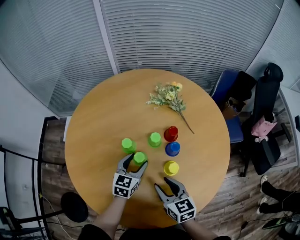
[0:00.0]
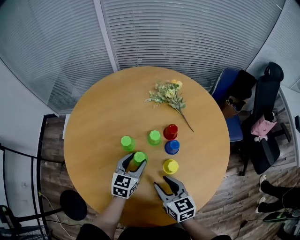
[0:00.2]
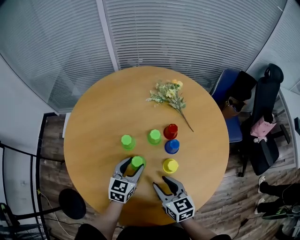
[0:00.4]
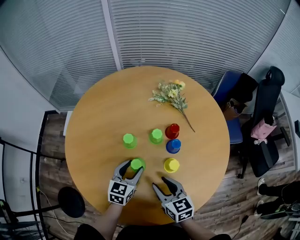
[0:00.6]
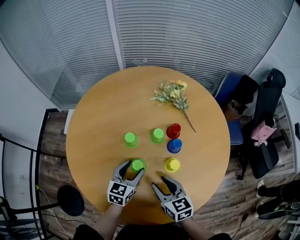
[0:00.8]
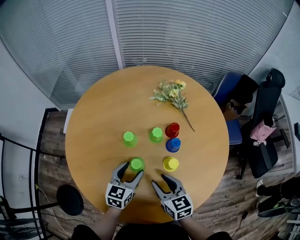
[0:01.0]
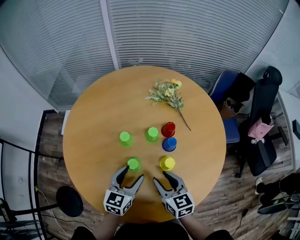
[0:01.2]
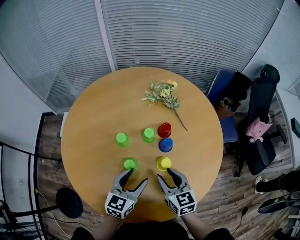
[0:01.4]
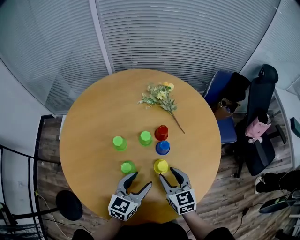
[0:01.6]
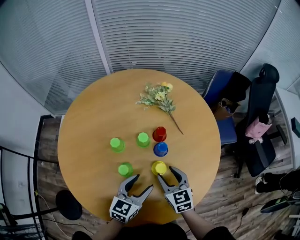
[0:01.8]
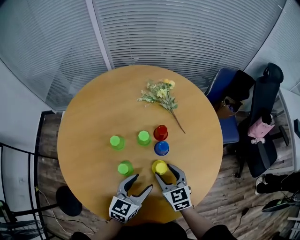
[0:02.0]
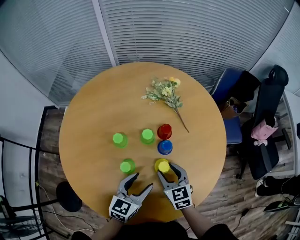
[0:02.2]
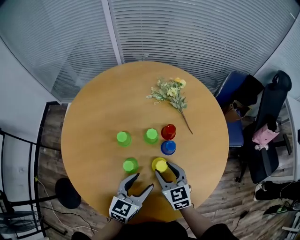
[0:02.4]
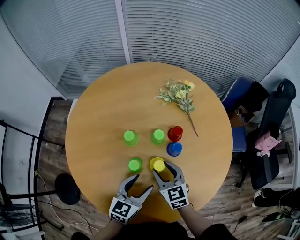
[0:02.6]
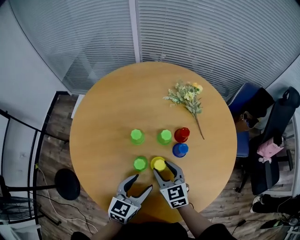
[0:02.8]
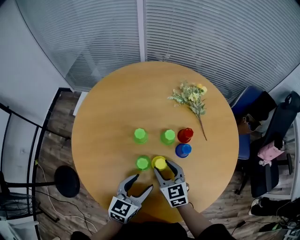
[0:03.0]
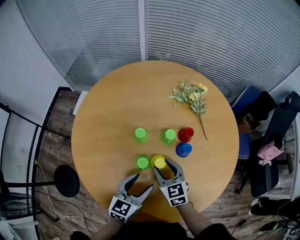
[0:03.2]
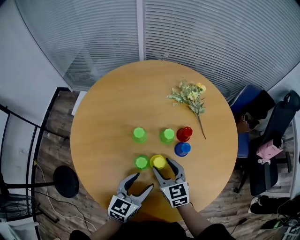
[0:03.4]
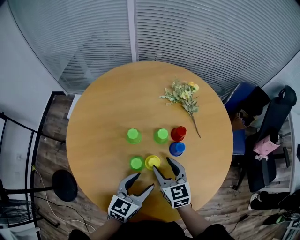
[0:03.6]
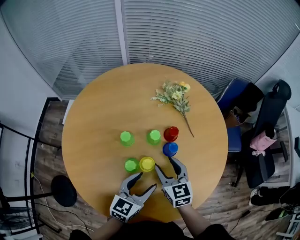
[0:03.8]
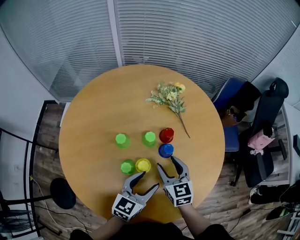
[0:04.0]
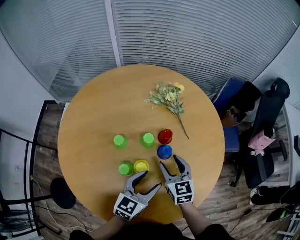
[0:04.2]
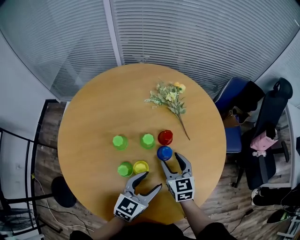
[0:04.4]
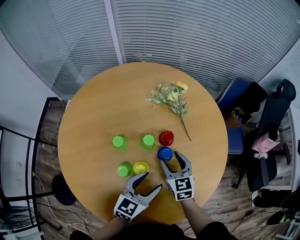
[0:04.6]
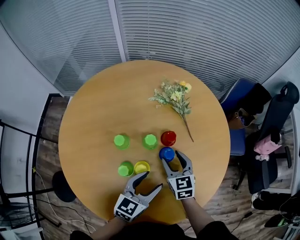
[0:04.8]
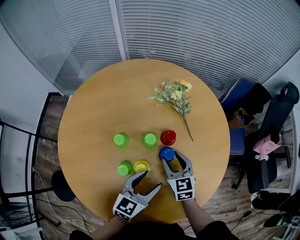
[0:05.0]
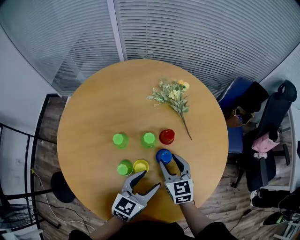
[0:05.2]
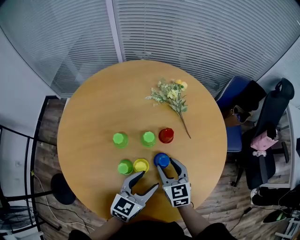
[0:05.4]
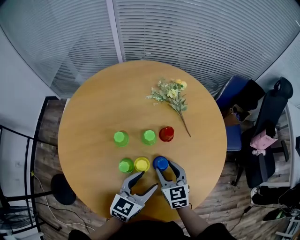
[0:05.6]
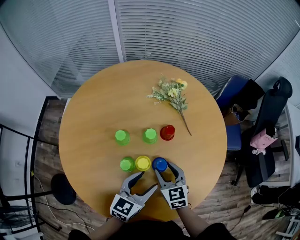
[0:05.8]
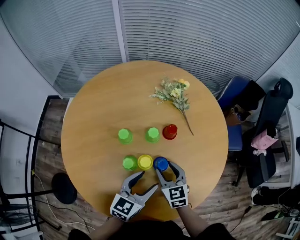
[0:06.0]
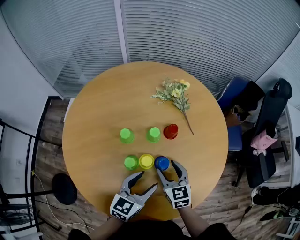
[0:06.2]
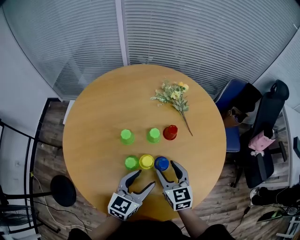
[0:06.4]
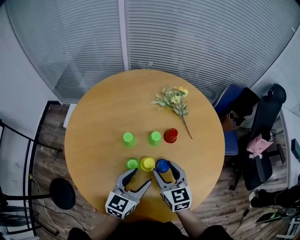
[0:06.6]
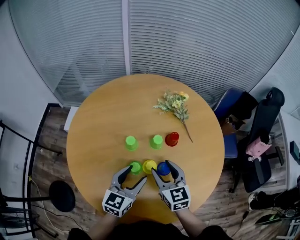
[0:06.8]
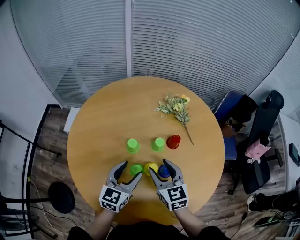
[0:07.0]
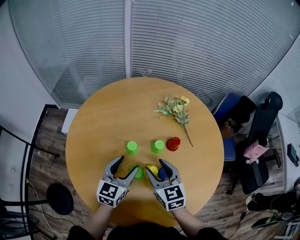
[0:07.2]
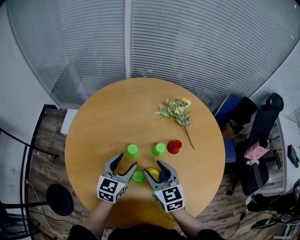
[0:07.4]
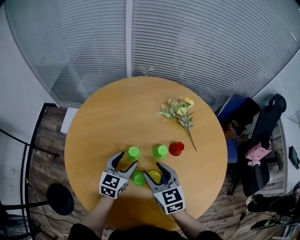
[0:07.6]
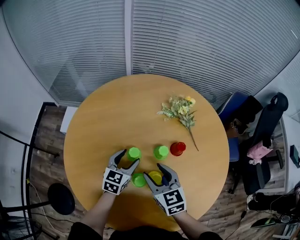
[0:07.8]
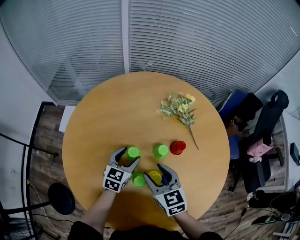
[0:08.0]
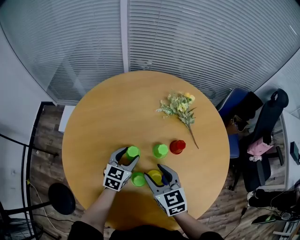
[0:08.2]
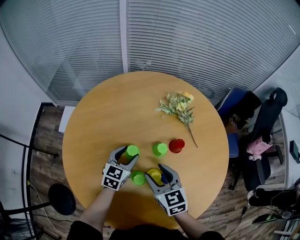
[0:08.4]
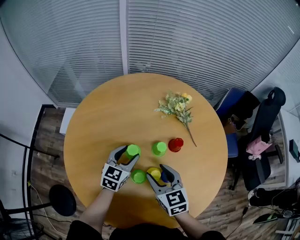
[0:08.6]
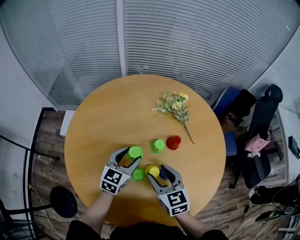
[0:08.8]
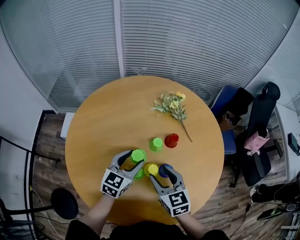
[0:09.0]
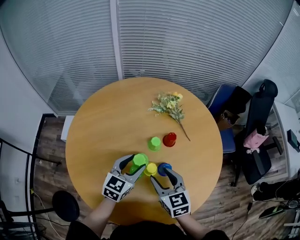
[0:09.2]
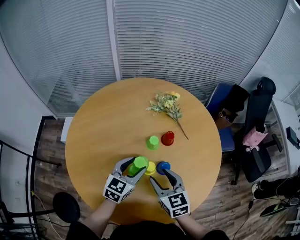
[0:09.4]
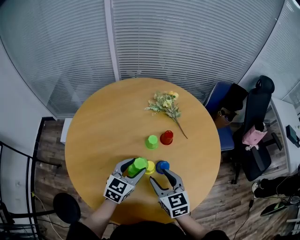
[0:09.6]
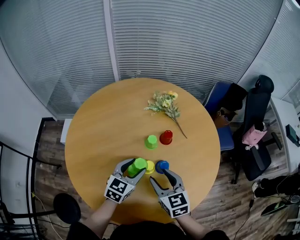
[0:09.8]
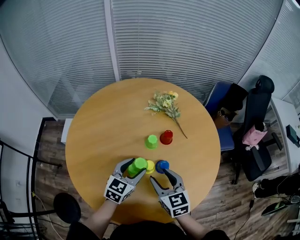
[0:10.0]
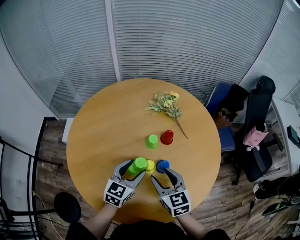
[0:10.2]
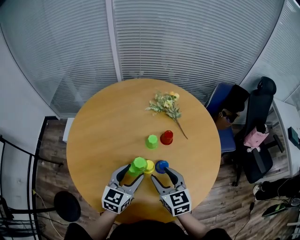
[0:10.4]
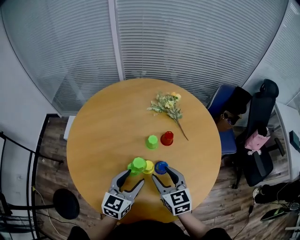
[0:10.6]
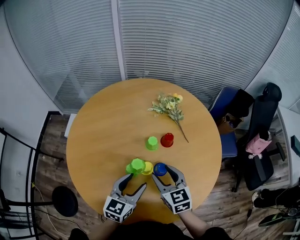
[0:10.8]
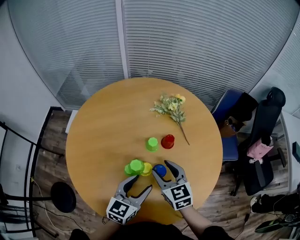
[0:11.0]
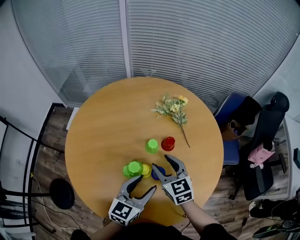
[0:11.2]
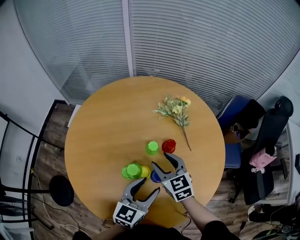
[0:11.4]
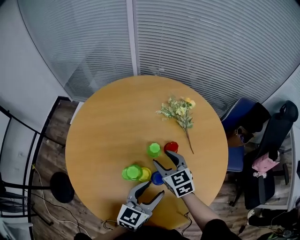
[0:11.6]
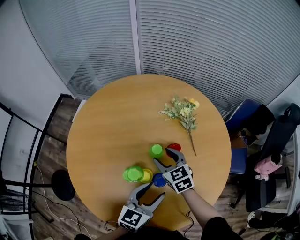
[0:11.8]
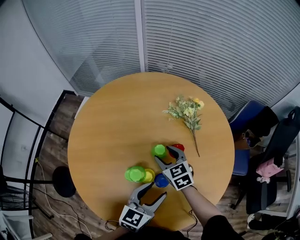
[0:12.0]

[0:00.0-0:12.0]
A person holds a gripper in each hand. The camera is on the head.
0:00.0 to 0:01.6: The left gripper heads backward, upward and to the right, covering approximately 15 cm; the right gripper heads to the right, covering approximately 5 cm.
0:01.6 to 0:03.0: The right gripper travels to the left by roughly 10 cm. The left gripper is displaced to the left by some 5 cm.
0:03.0 to 0:04.4: The left gripper moves to the right, about 10 cm; the right gripper goes roughly 15 cm to the right and forward.
0:04.4 to 0:06.0: The right gripper heads backward, covering about 5 cm.
0:06.0 to 0:07.6: The right gripper is displaced to the left, upward and forward by about 15 cm, while the left gripper goes some 20 cm to the left and forward.
0:07.6 to 0:09.0: The left gripper shifts about 5 cm upward and to the right, while the right gripper travels backward by approximately 5 cm.
0:09.0 to 0:10.4: The left gripper heads backward, covering about 10 cm.
0:10.4 to 0:12.0: The left gripper is displaced to the right by roughly 10 cm. Meanwhile the right gripper heads forward and downward, covering approximately 20 cm, and turns by roughly 30 degrees.

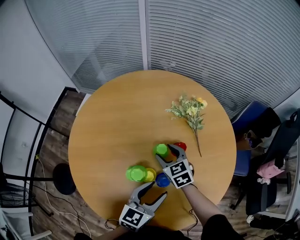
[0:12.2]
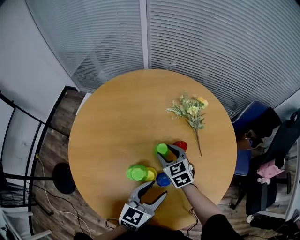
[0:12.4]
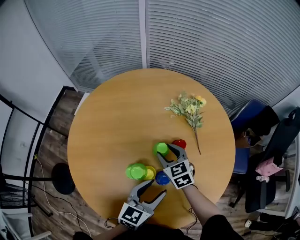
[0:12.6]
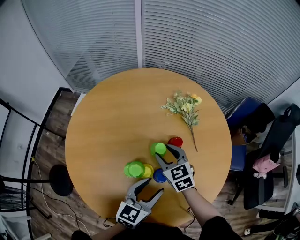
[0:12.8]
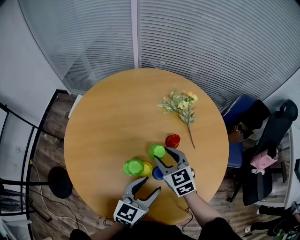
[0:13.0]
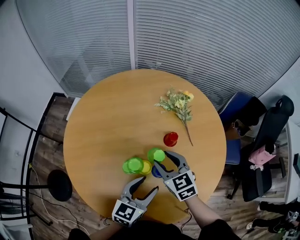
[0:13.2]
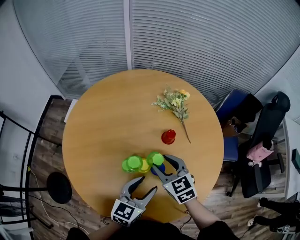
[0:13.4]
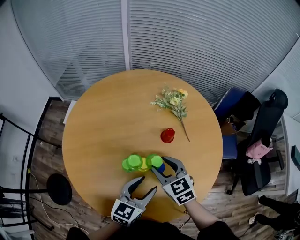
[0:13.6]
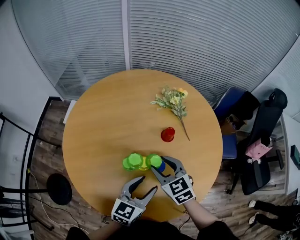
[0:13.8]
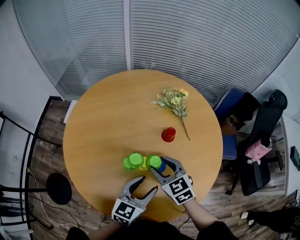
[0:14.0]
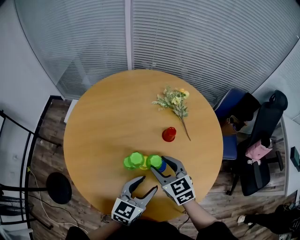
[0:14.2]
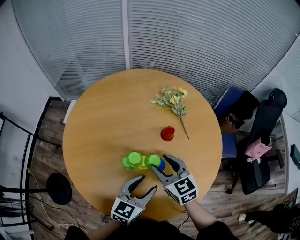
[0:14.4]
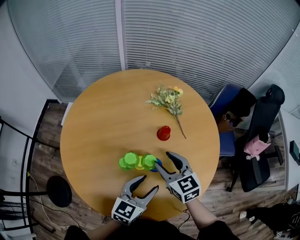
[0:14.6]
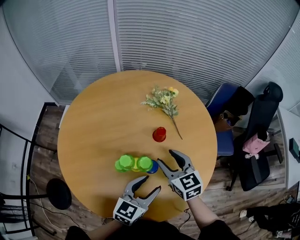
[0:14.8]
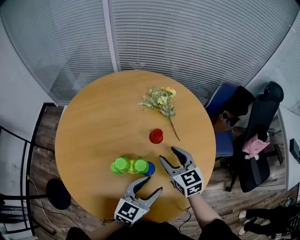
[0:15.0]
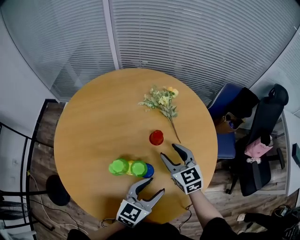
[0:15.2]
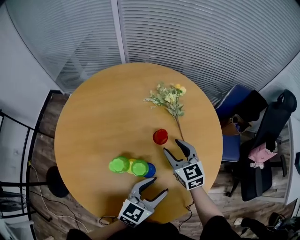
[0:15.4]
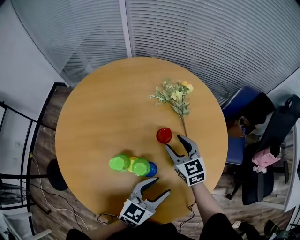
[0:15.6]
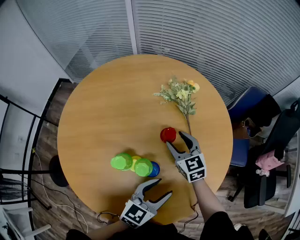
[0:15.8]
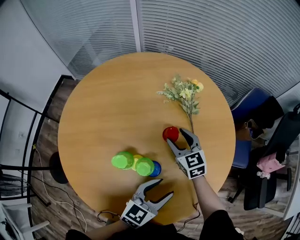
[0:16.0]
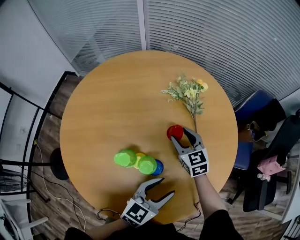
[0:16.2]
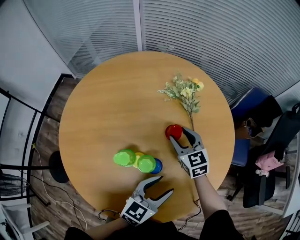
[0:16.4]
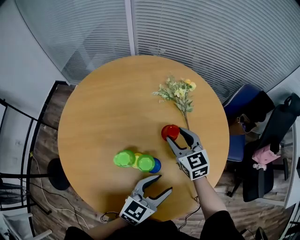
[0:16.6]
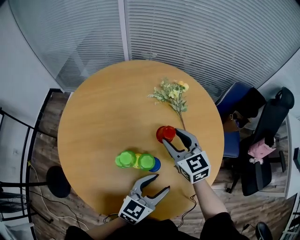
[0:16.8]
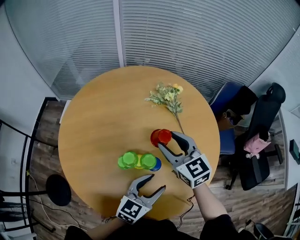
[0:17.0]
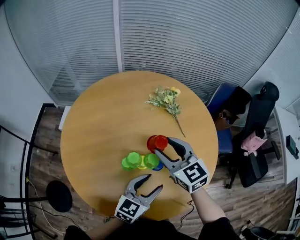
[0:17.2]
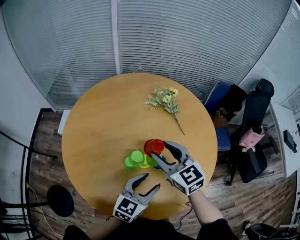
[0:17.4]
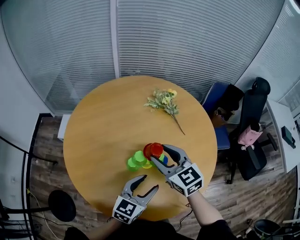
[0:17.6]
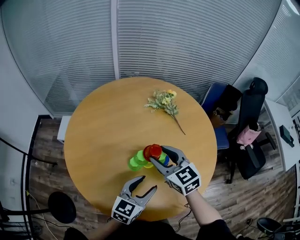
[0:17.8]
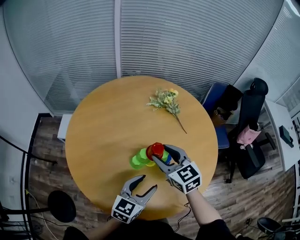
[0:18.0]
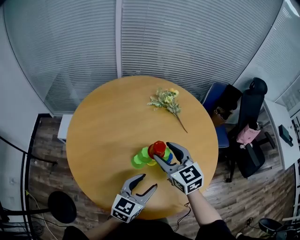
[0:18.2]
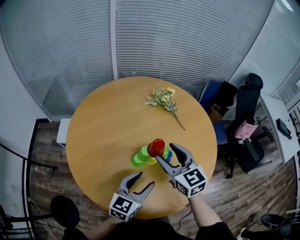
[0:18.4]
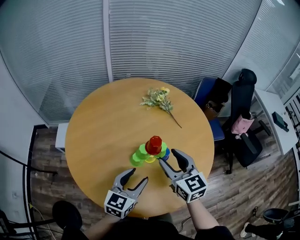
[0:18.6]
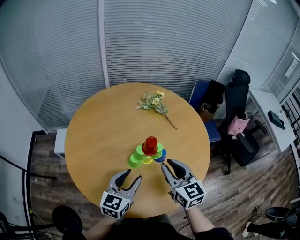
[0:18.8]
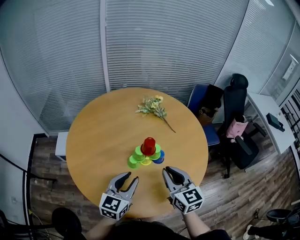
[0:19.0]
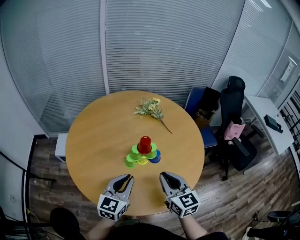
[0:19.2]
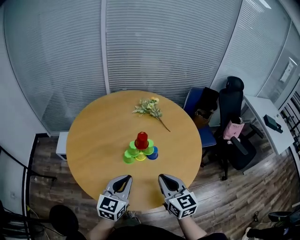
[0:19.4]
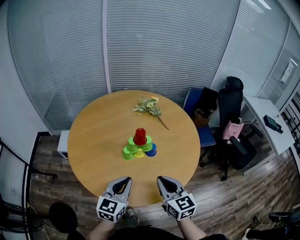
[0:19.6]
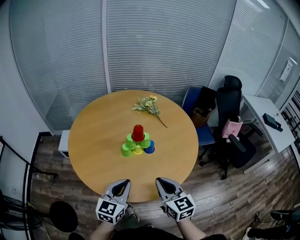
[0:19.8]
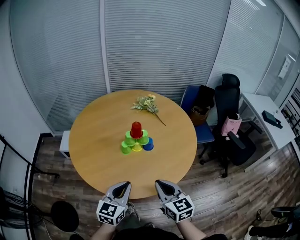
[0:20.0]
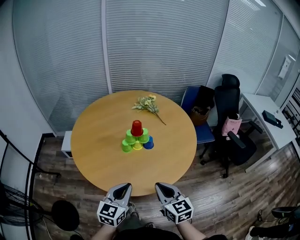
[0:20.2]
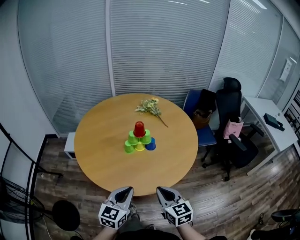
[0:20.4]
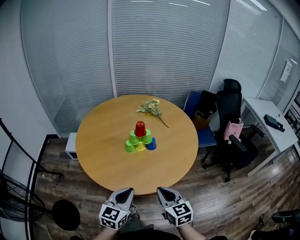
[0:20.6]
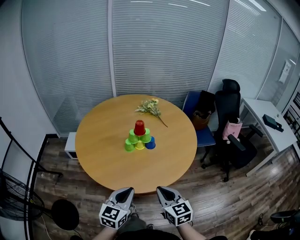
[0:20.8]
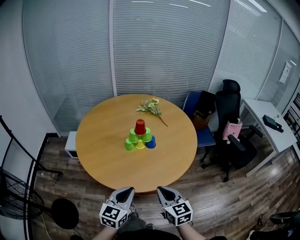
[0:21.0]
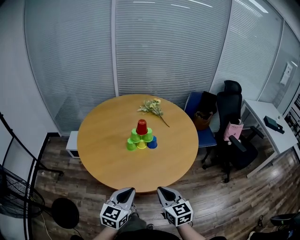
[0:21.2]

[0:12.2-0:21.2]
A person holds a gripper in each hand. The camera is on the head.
0:12.2 to 0:13.8: The right gripper shifts approximately 15 cm backward and upward. Meanwhile the left gripper shifts roughly 5 cm backward.
0:13.8 to 0:15.2: The left gripper is displaced to the right by roughly 10 cm, while the right gripper travels to the right and forward by roughly 15 cm.
0:15.2 to 0:16.6: The right gripper travels downward and back again, roughly 10 cm each way.
0:16.6 to 0:18.2: The right gripper shifts about 20 cm backward, to the left and upward, while the left gripper travels to the left and backward by approximately 15 cm.
0:18.2 to 0:19.8: The left gripper travels backward by approximately 15 cm, and closes up, while the right gripper moves backward, approximately 25 cm, and closes.
0:19.8 to 0:21.2: The grippers both shift backward by about 10 cm.

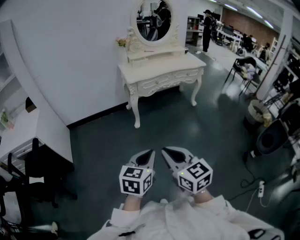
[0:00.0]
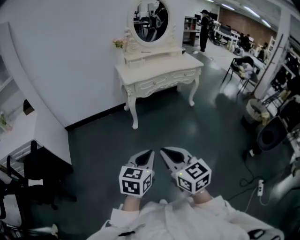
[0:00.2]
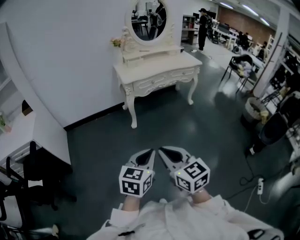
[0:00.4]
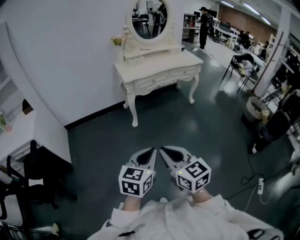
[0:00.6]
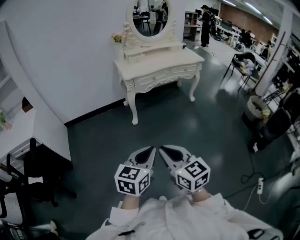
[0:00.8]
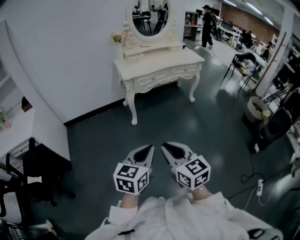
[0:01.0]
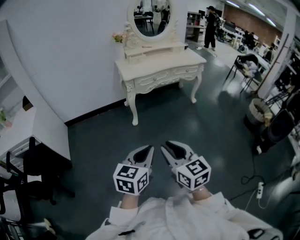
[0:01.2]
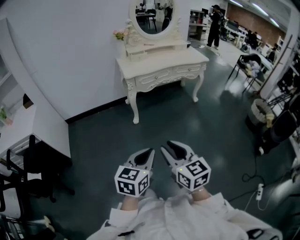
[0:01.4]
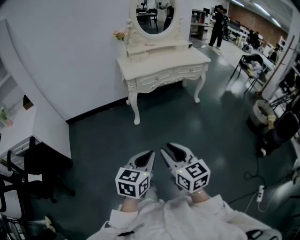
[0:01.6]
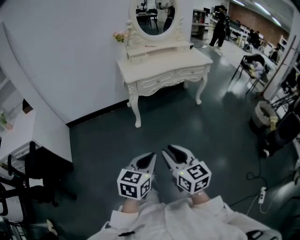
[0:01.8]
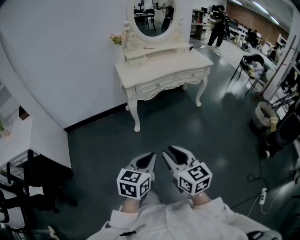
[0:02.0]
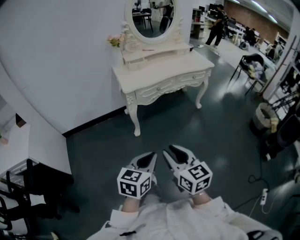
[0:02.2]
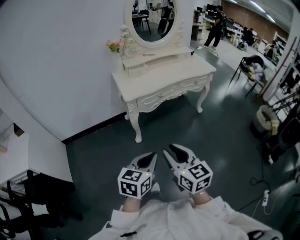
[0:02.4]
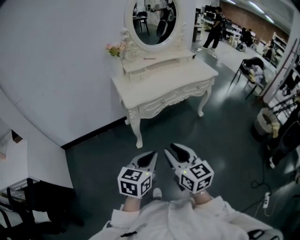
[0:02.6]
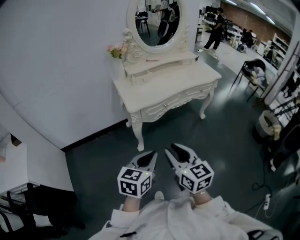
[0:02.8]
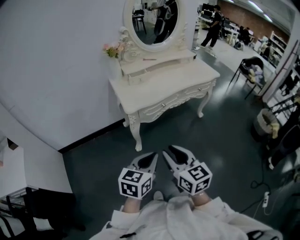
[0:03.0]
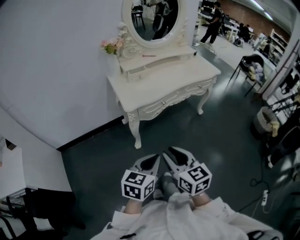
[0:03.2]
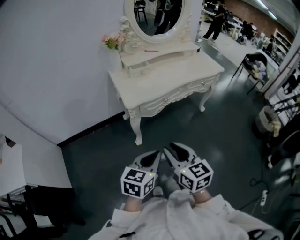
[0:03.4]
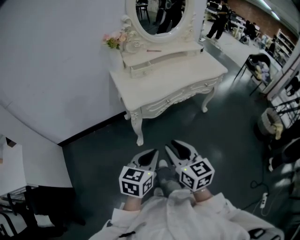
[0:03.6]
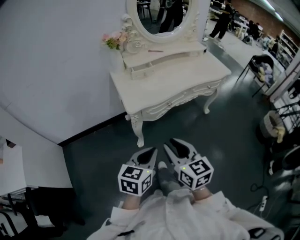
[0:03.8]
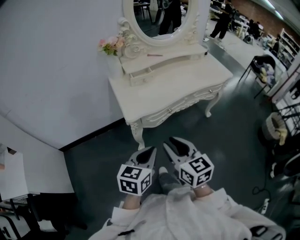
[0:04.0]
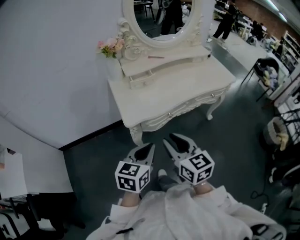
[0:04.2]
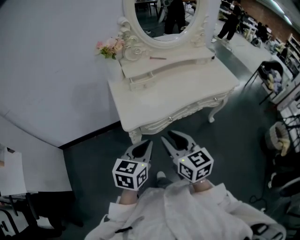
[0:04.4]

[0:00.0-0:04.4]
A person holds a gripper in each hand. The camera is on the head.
0:00.0 to 0:01.4: The right gripper goes roughly 5 cm forward.
0:01.4 to 0:03.0: Both grippers move forward, about 35 cm.
0:03.0 to 0:04.4: The grippers both shift forward by some 25 cm.
